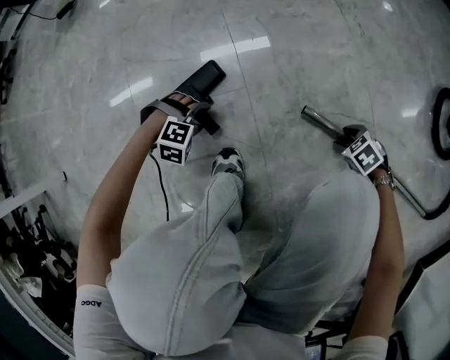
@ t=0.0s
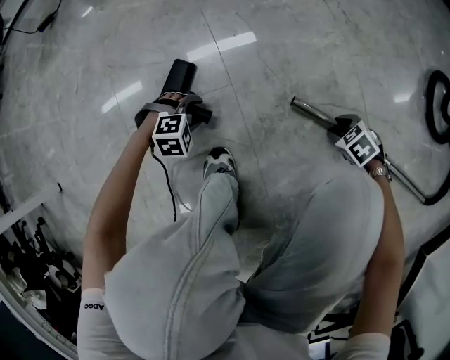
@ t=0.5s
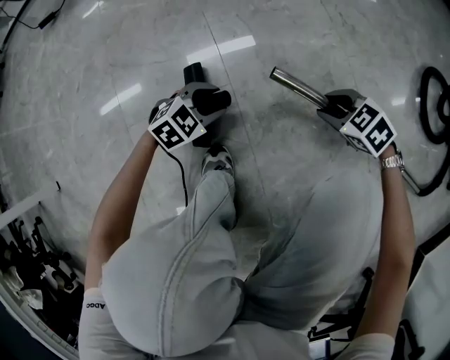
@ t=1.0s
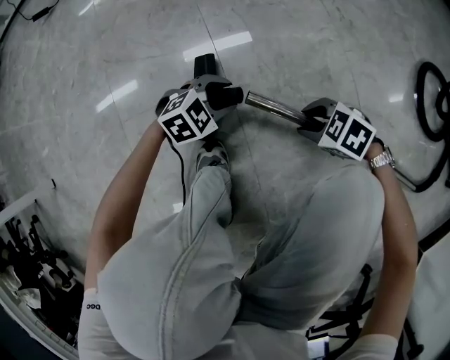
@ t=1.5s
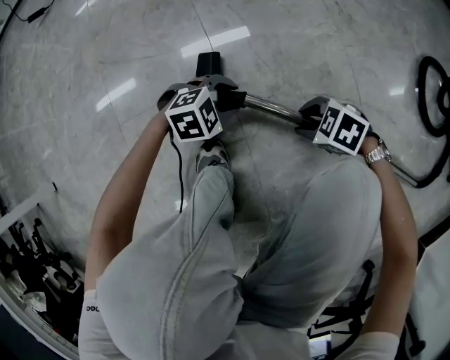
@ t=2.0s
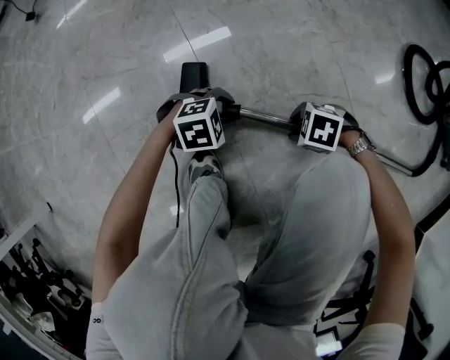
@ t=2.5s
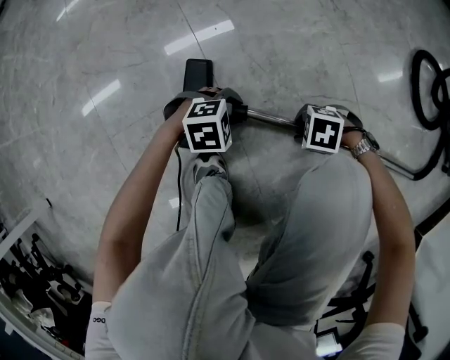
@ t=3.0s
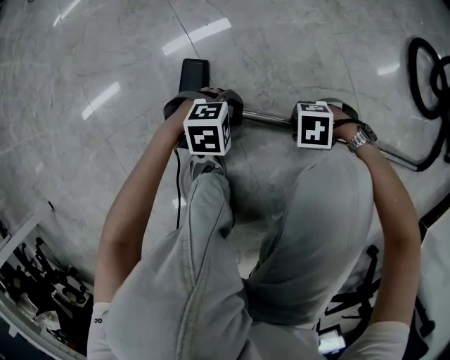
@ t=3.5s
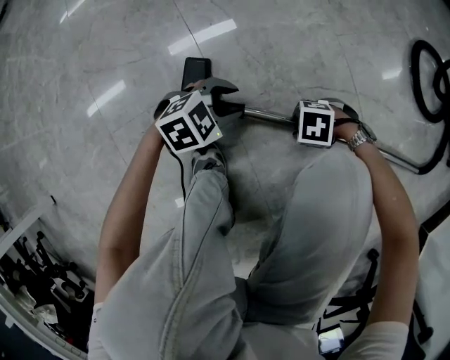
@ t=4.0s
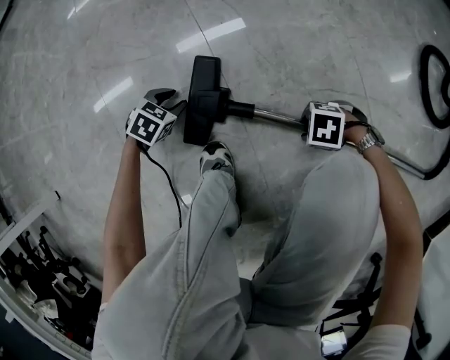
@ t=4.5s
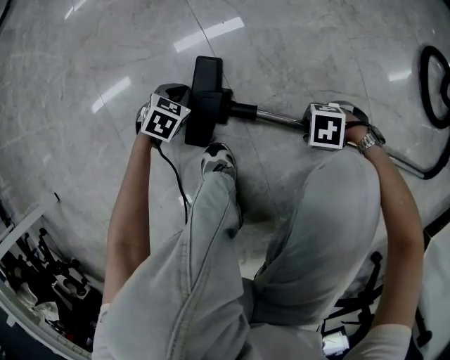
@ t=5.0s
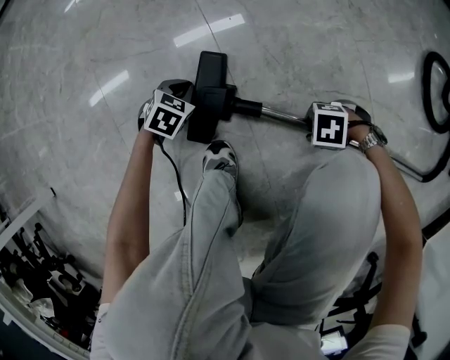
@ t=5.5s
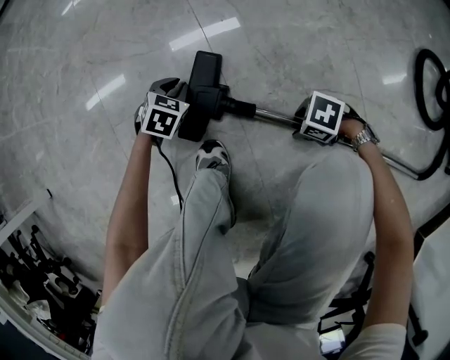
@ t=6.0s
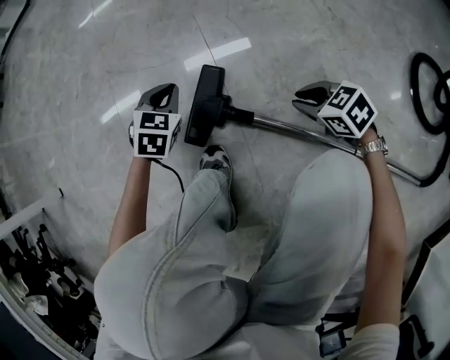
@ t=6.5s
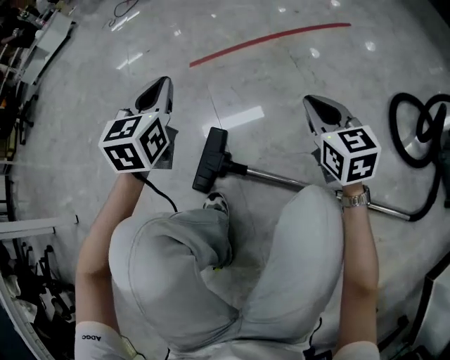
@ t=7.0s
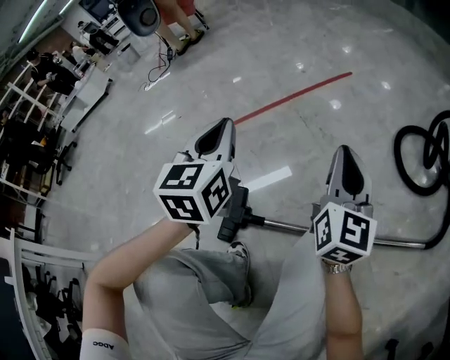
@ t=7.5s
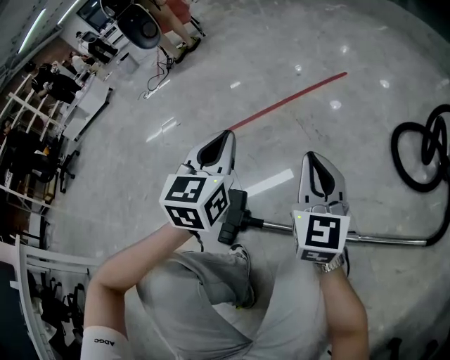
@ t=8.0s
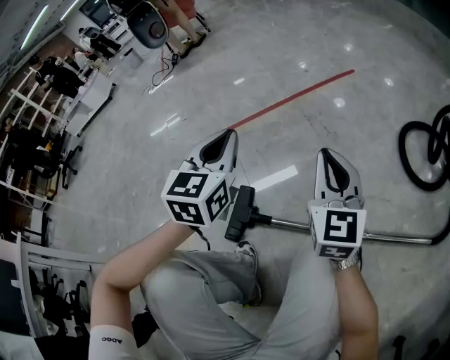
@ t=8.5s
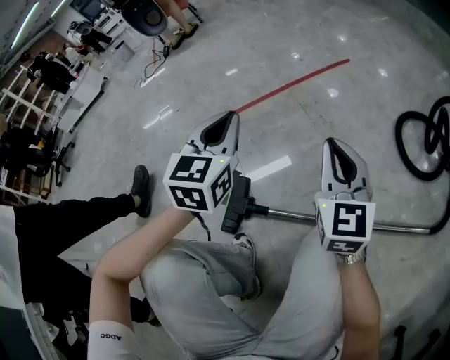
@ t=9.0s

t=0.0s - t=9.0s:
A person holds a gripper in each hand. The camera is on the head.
t=0.0s - t=2.0s: The right gripper ends up about 15 cm from where it was, and swivels roughly 20 degrees. The left gripper ends up approximately 15 cm from where it was, and rotates roughly 30 degrees.
t=2.0s - t=4.5s: The right gripper is displaced downward by roughly 5 cm, and turns by about 20 degrees, while the left gripper moves roughly 20 cm, and swivels approximately 40 degrees.
t=4.5s - t=7.0s: Both grippers move upward, roughly 35 cm. The left gripper angles its fingers upward, by about 50 degrees, and closes its fingers; the right gripper angles its fingers upward, by about 40 degrees, and closes up.
t=7.0s - t=9.0s: The left gripper shifts roughly 15 cm to the right and upward; the right gripper moves upward and backward, about 15 cm, and swivels about 30 degrees.

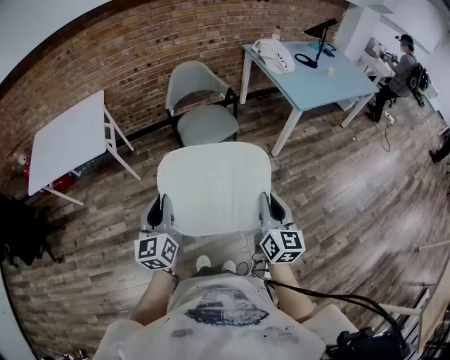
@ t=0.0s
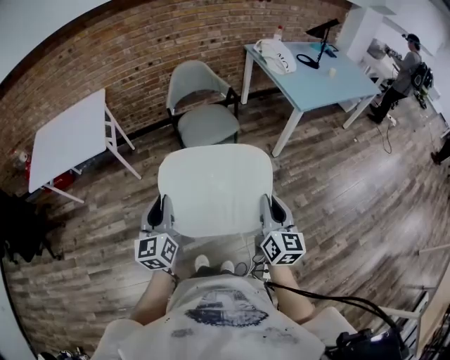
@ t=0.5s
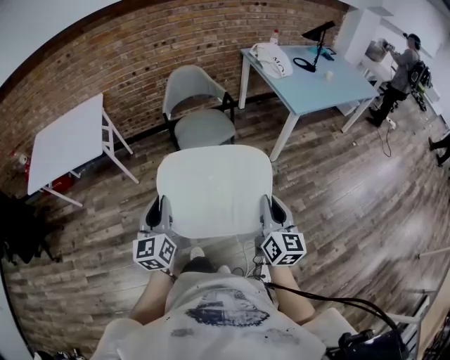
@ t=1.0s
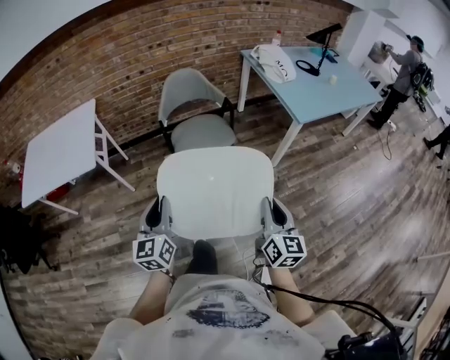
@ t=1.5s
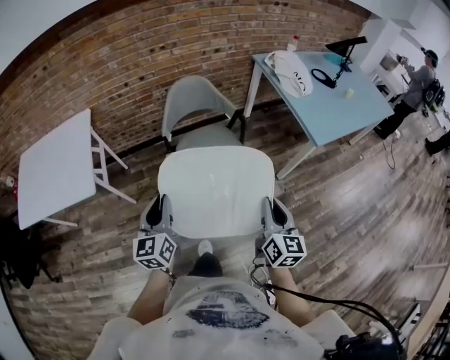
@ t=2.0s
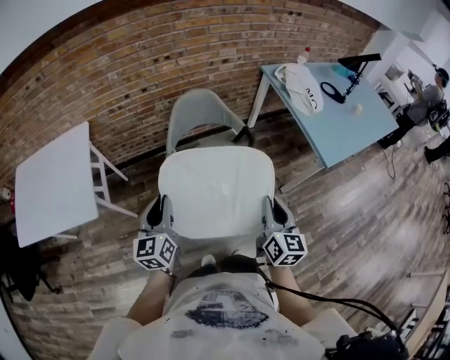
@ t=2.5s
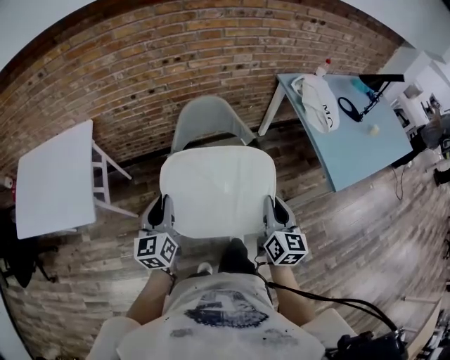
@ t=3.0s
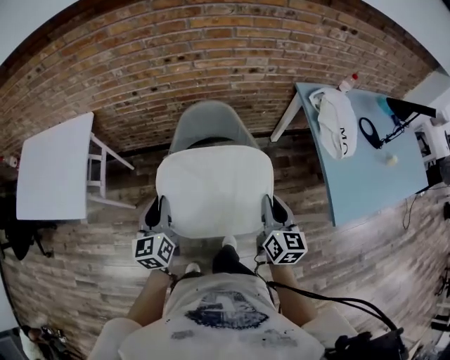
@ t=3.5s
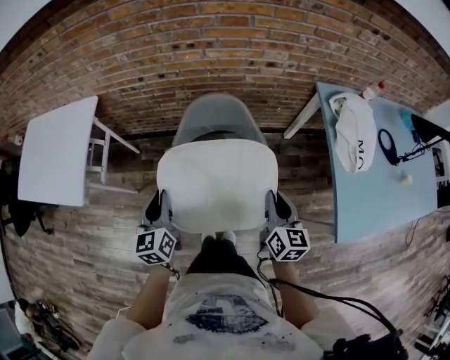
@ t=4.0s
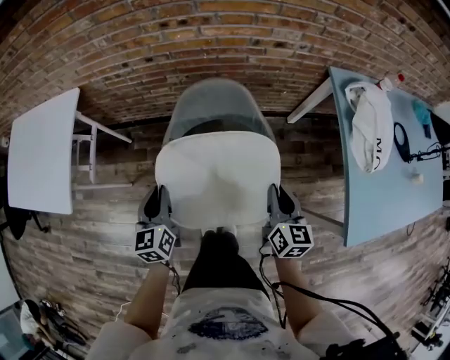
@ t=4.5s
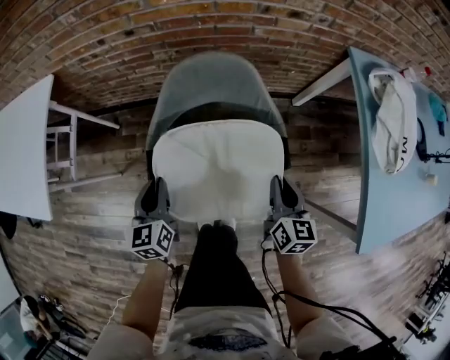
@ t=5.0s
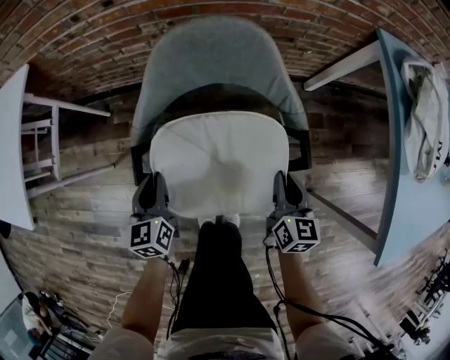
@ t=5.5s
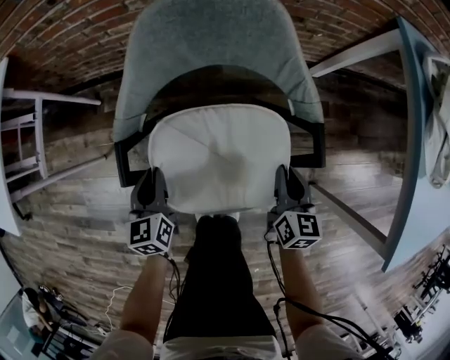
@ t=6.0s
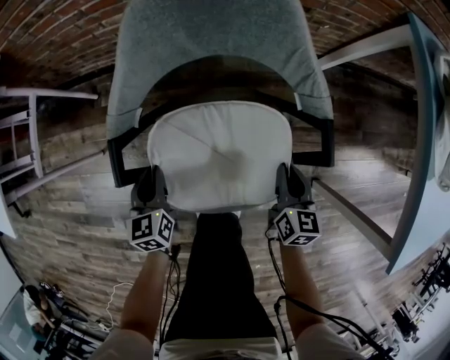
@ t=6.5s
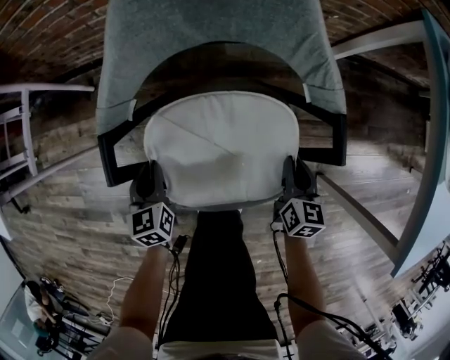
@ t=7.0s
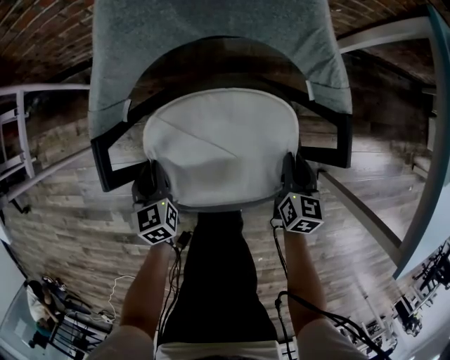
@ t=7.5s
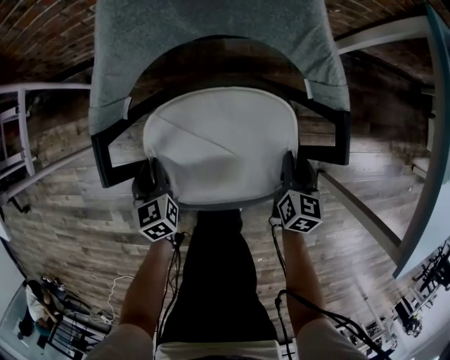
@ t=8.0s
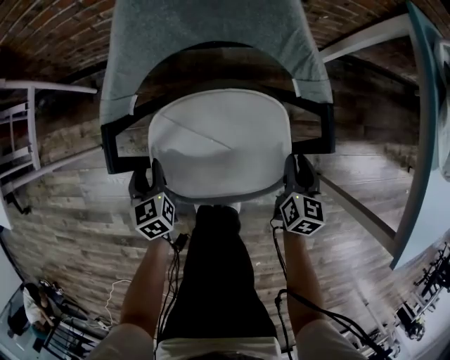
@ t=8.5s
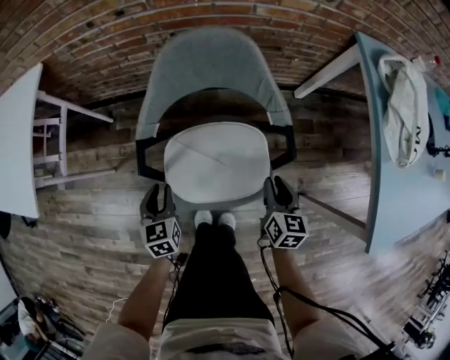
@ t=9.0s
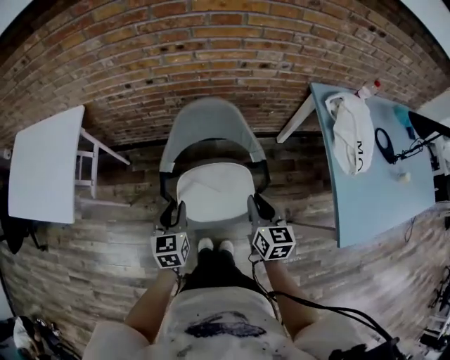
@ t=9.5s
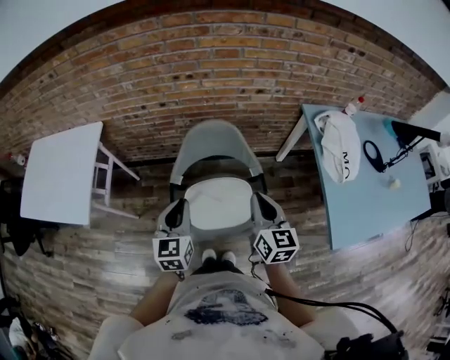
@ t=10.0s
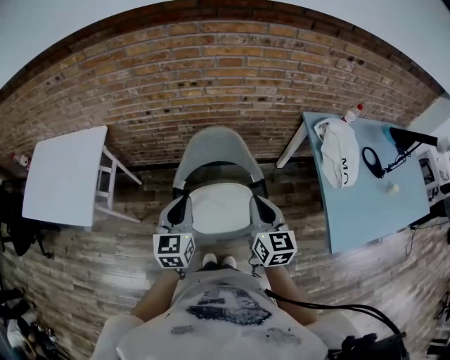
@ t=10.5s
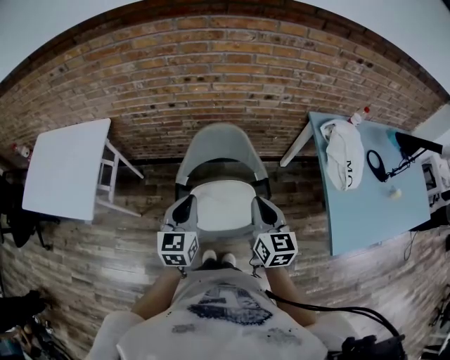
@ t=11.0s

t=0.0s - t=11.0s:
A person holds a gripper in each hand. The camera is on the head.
t=0.0s - t=2.0s: Both grippers move forward, about 30 cm.
t=2.0s - t=3.5s: Both grippers travel together forward, about 35 cm.
t=3.5s - t=5.5s: The right gripper goes roughly 40 cm downward and forward. The left gripper moves downward, roughly 35 cm.
t=5.5s - t=7.5s: The two grippers go some 20 cm downward.
t=7.5s - t=9.0s: Both grippers move upward, about 20 cm.
t=9.0s - t=11.0s: The grippers both shift upward by some 40 cm. The left gripper swivels about 30 degrees, and closes up. The right gripper changes its angle by roughly 20 degrees, and closes up.

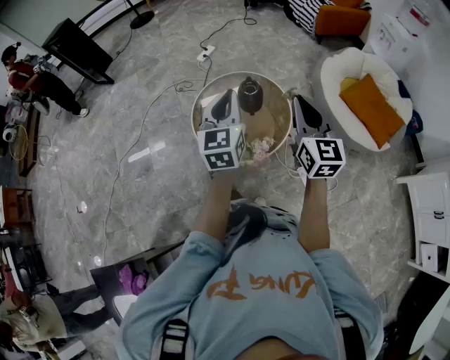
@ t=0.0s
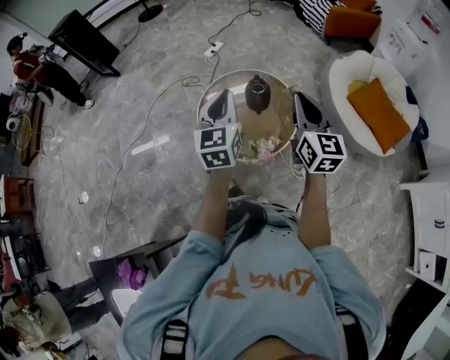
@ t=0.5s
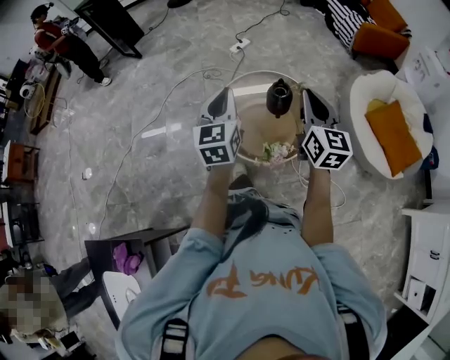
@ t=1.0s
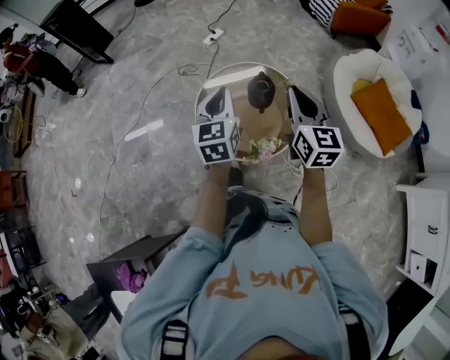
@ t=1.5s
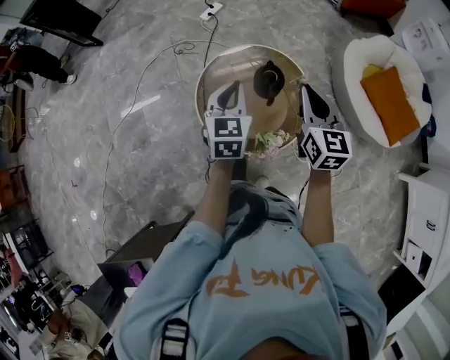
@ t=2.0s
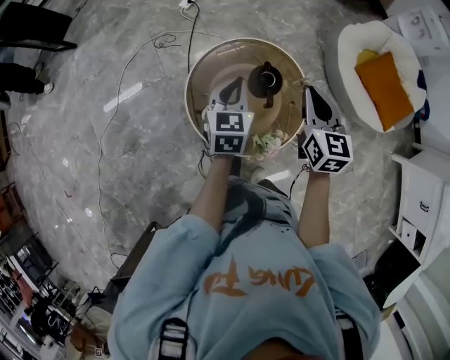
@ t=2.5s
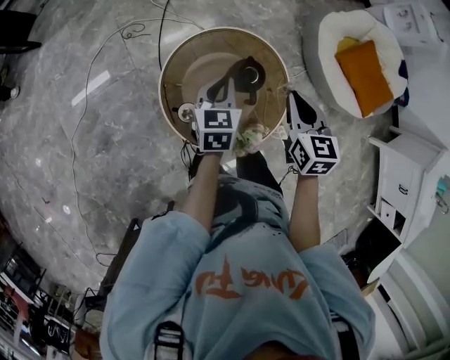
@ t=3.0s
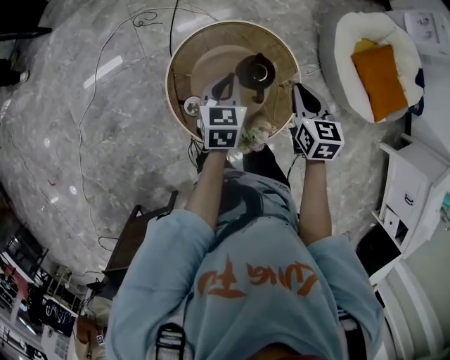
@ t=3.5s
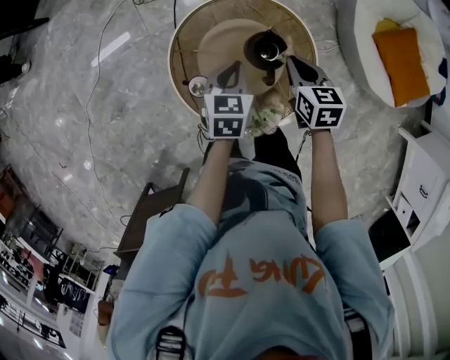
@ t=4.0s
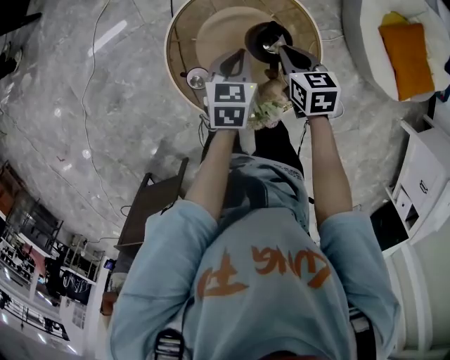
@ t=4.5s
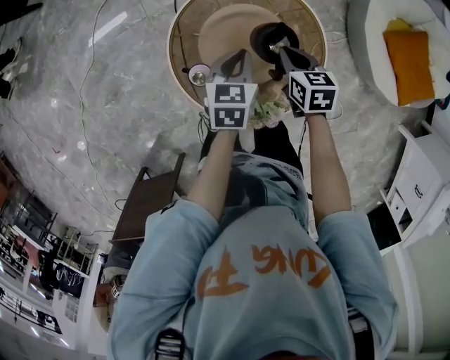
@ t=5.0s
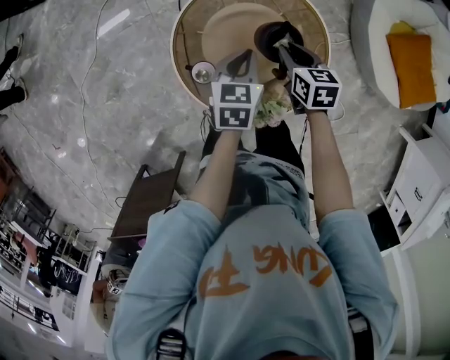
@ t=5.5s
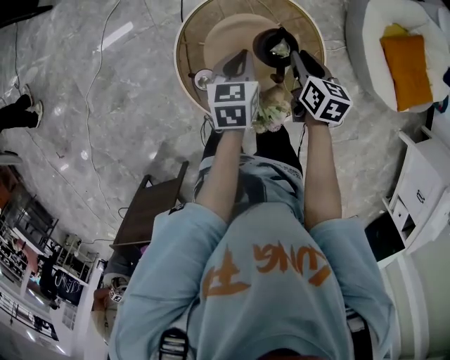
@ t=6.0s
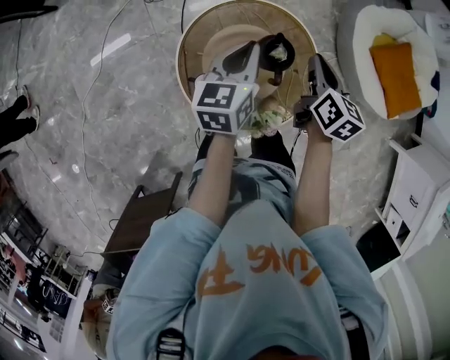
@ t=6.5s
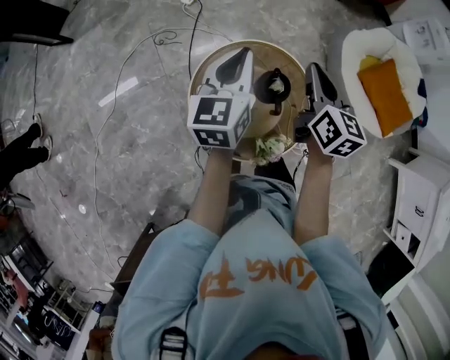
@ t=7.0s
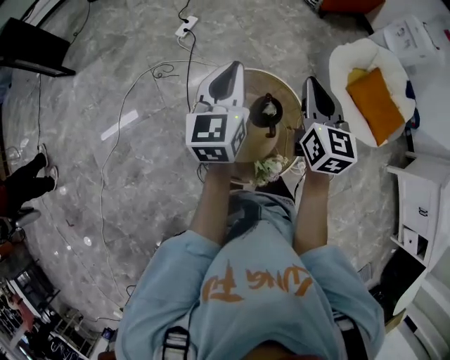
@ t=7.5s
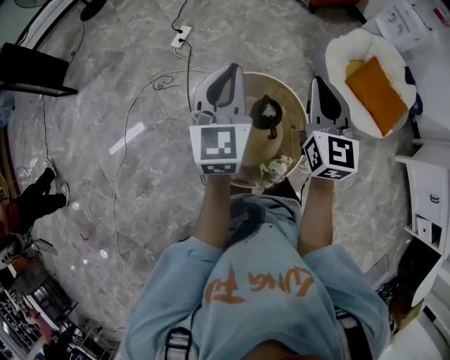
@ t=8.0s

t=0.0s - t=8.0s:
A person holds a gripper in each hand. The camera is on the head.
t=0.0s - t=2.0s: Both grippers travel together forward and downward, approximately 20 cm.
t=2.0s - t=4.0s: Both grippers travel together downward and forward, about 25 cm. The right gripper angles its fingers downward, by about 30 degrees, while the left gripper changes its angle by some 30 degrees.
t=6.0s - t=8.0s: Both grippers travel together upward, approximately 35 cm. The right gripper tips its fingers upward by roughly 40 degrees, and closes its fingers. Meanwhile the left gripper tilts its fingers some 40 degrees upward.
